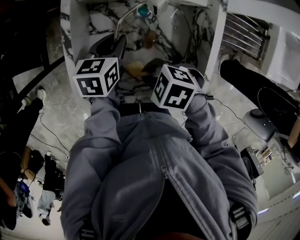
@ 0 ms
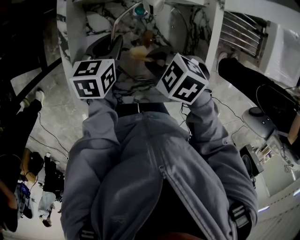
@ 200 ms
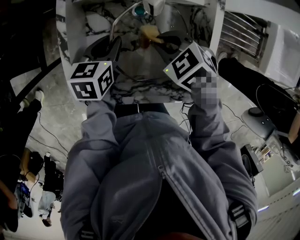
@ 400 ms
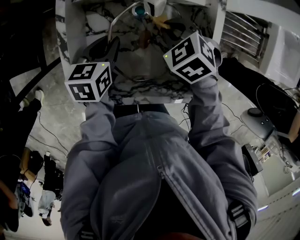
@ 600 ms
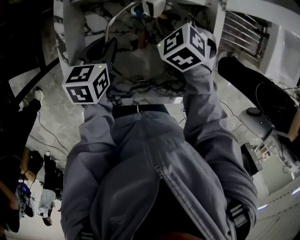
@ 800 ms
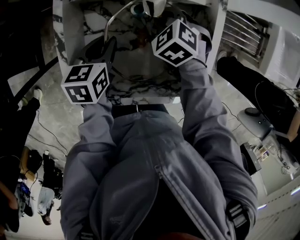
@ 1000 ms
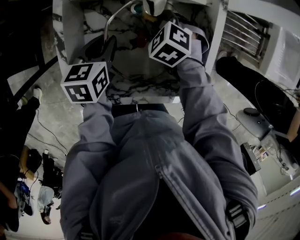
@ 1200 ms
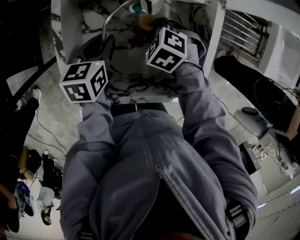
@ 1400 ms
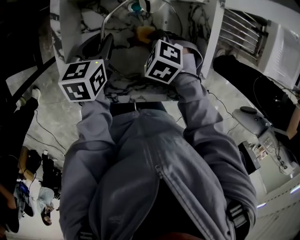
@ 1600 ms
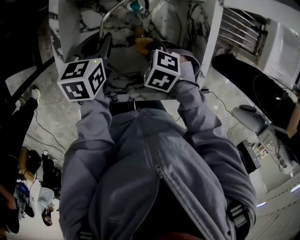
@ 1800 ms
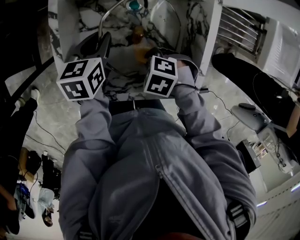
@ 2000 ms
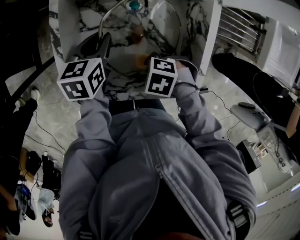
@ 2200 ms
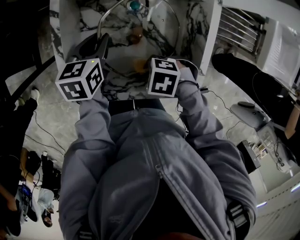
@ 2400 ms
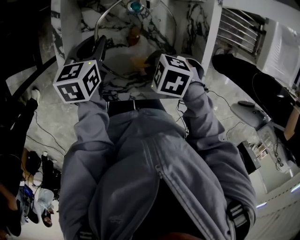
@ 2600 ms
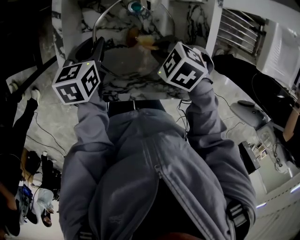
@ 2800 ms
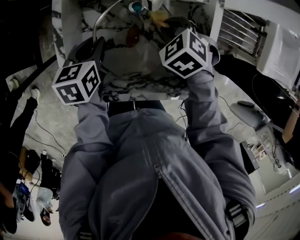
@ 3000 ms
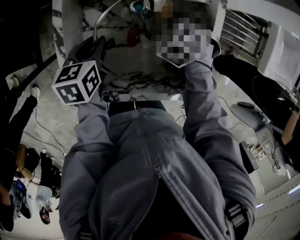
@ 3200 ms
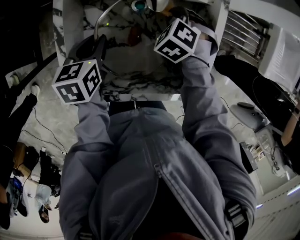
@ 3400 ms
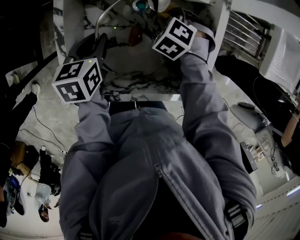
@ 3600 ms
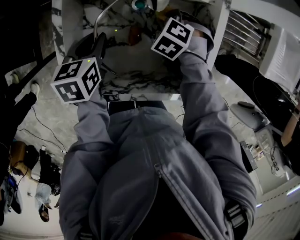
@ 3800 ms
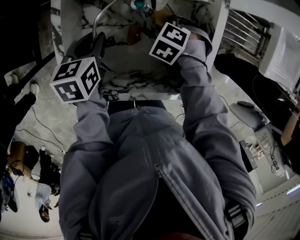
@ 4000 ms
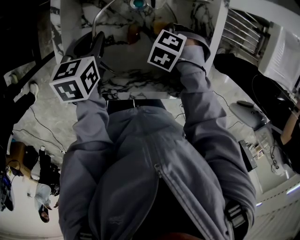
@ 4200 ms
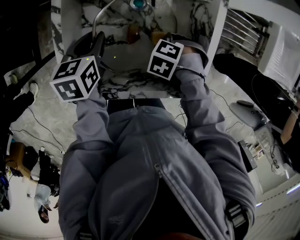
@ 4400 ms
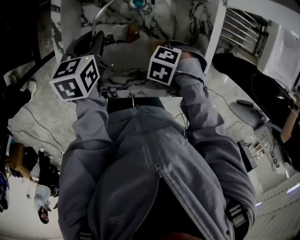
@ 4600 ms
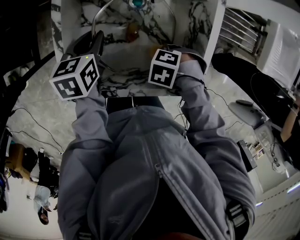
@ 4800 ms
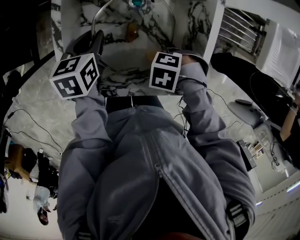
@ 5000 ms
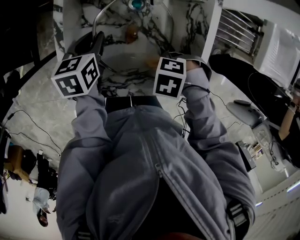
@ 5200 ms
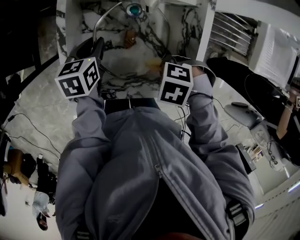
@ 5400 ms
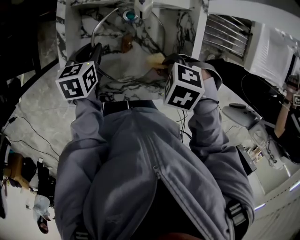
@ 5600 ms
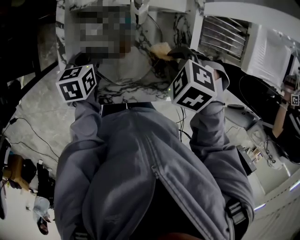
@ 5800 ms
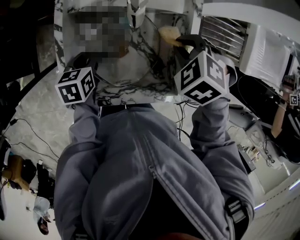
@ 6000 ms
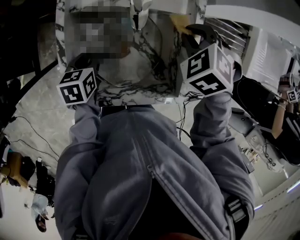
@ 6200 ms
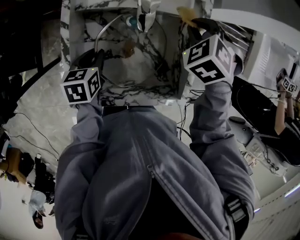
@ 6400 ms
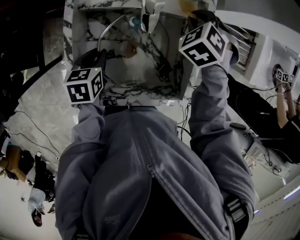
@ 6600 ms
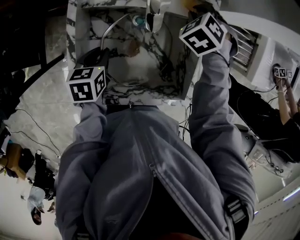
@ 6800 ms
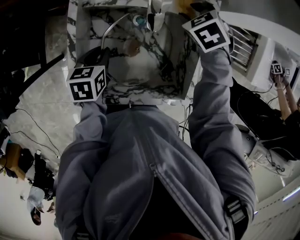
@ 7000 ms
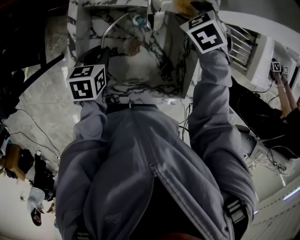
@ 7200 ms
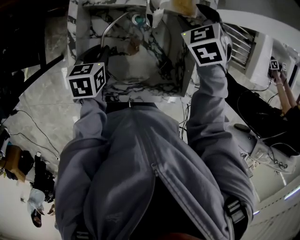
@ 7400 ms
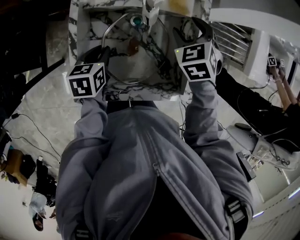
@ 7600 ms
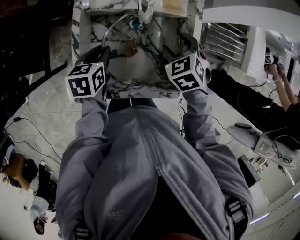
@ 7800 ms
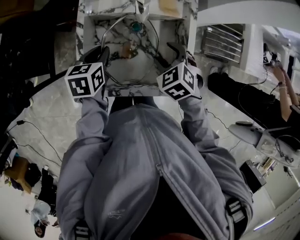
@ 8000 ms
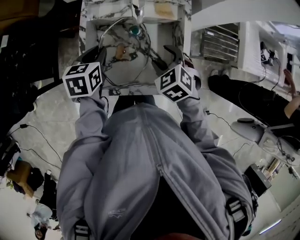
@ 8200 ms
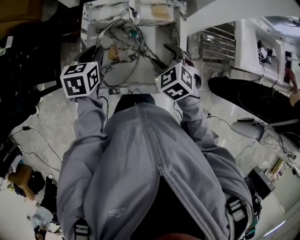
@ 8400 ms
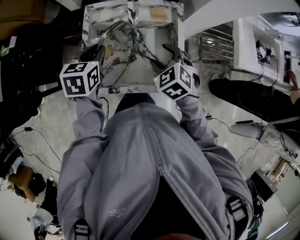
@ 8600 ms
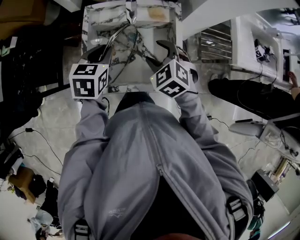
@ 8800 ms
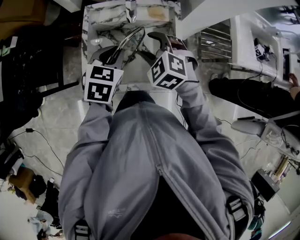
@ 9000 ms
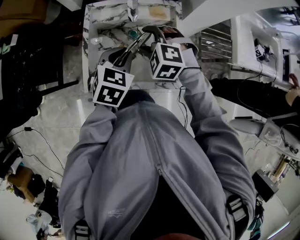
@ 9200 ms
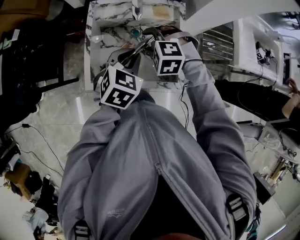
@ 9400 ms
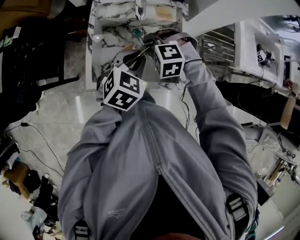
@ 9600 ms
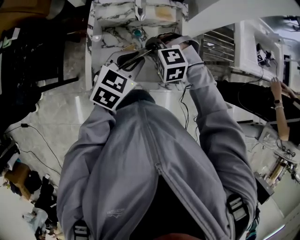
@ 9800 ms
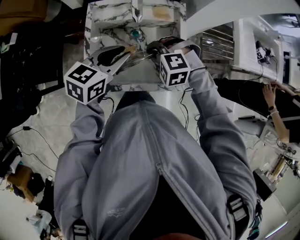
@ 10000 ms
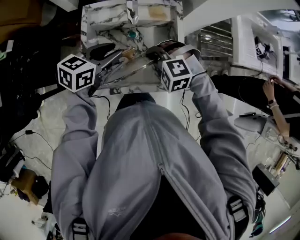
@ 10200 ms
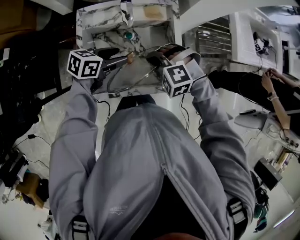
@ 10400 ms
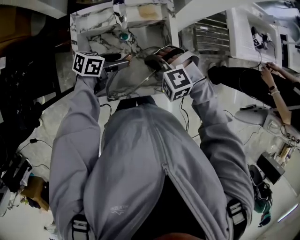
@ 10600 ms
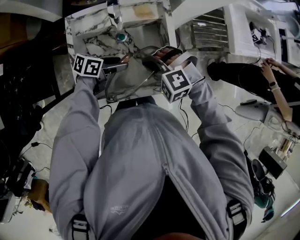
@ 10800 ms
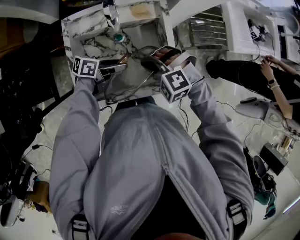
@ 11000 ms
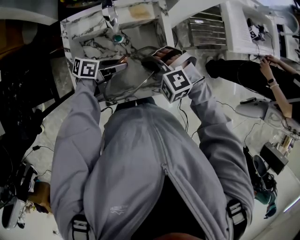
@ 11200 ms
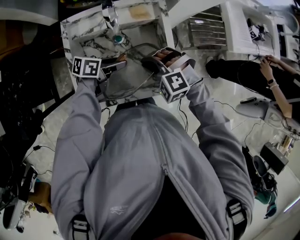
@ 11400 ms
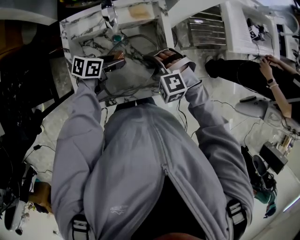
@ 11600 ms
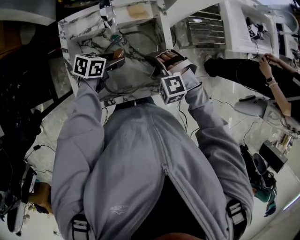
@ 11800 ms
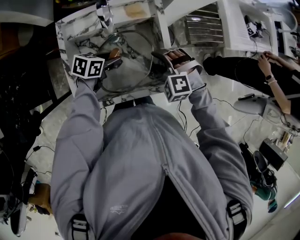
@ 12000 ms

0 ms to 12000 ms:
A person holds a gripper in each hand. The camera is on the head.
0 ms to 1600 ms: The right gripper rotates roughly 30 degrees.
3000 ms to 4400 ms: The right gripper moves some 15 cm, and changes its angle by about 30 degrees.
4400 ms to 6000 ms: The right gripper shifts about 20 cm upward, and swivels approximately 20 degrees.
6000 ms to 7600 ms: The right gripper rotates approximately 30 degrees, and opens.
7600 ms to 9000 ms: The right gripper shifts roughly 20 cm backward, upward and to the left, and rotates roughly 30 degrees, while the left gripper goes approximately 20 cm upward and to the right, and rotates approximately 30 degrees.
9000 ms to 10400 ms: The two grippers go some 10 cm downward. The right gripper turns by approximately 30 degrees, and closes its fingers. The left gripper swivels some 40 degrees, and opens its fingers.
10400 ms to 12000 ms: The right gripper ends up some 10 cm from where it was, and opens up. The left gripper is displaced downward by some 10 cm.

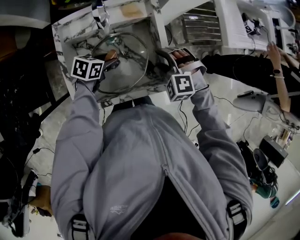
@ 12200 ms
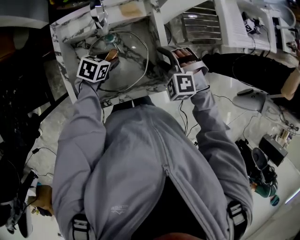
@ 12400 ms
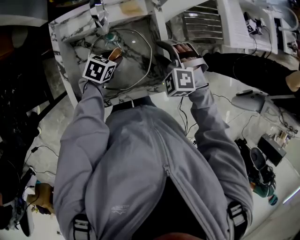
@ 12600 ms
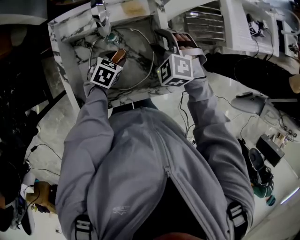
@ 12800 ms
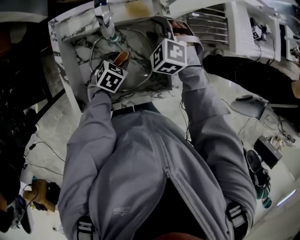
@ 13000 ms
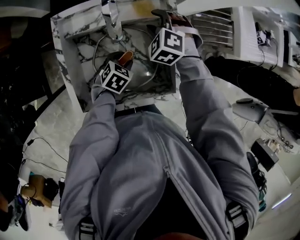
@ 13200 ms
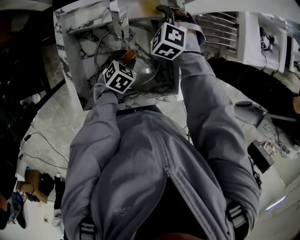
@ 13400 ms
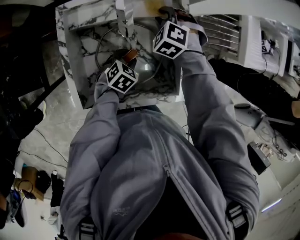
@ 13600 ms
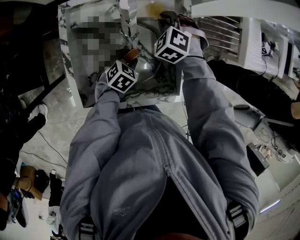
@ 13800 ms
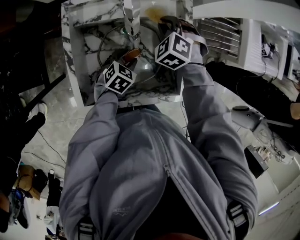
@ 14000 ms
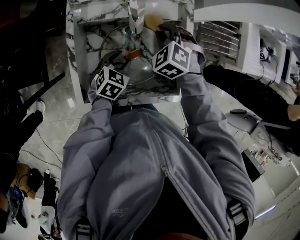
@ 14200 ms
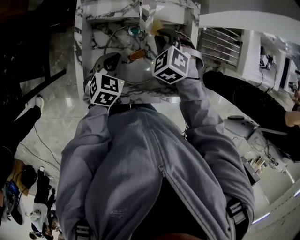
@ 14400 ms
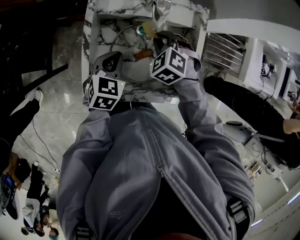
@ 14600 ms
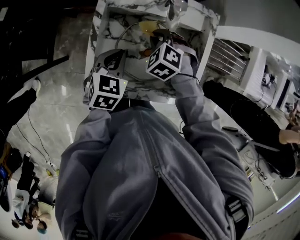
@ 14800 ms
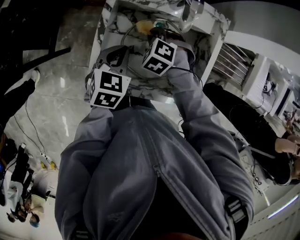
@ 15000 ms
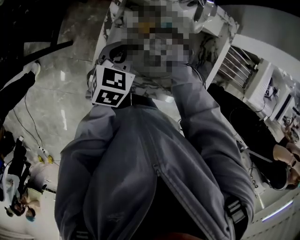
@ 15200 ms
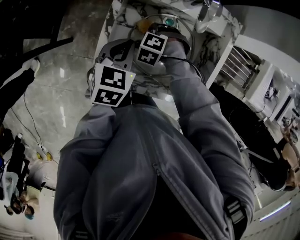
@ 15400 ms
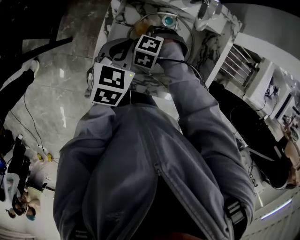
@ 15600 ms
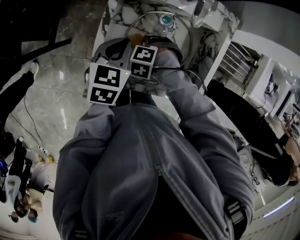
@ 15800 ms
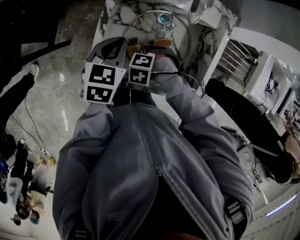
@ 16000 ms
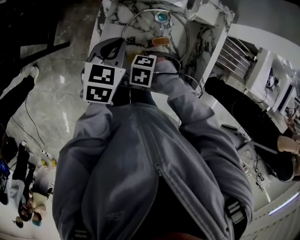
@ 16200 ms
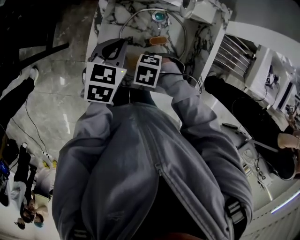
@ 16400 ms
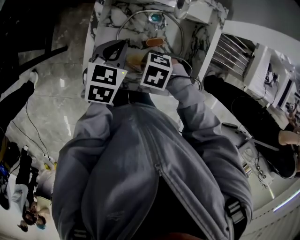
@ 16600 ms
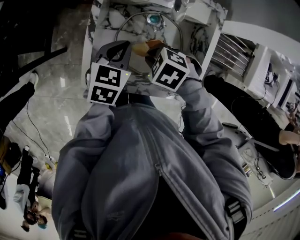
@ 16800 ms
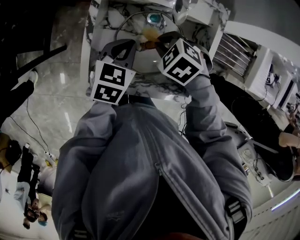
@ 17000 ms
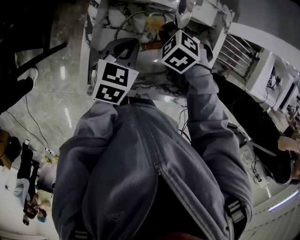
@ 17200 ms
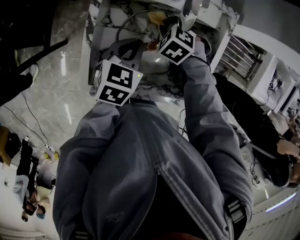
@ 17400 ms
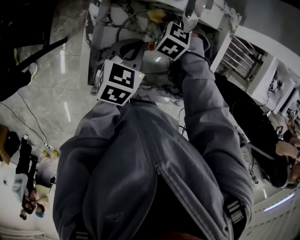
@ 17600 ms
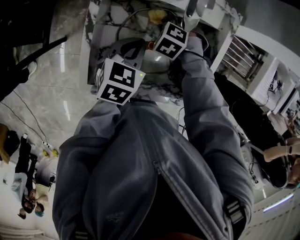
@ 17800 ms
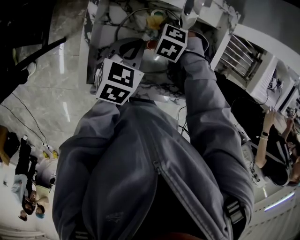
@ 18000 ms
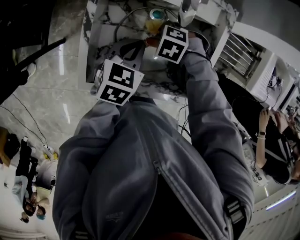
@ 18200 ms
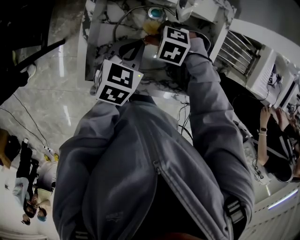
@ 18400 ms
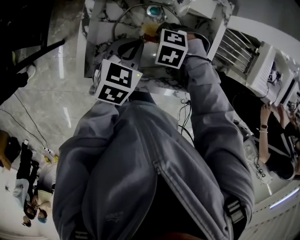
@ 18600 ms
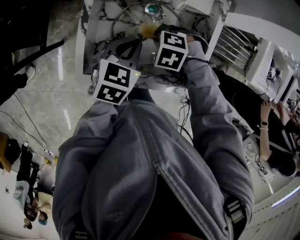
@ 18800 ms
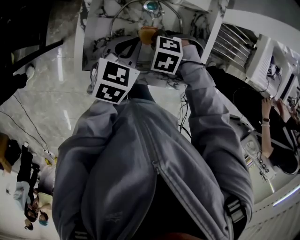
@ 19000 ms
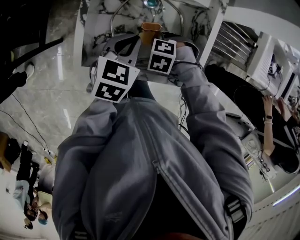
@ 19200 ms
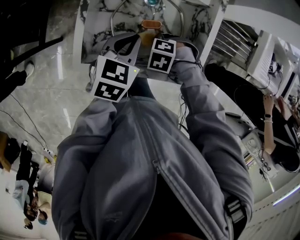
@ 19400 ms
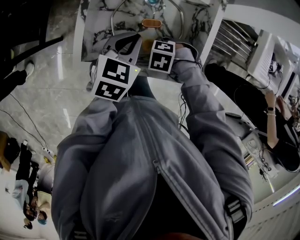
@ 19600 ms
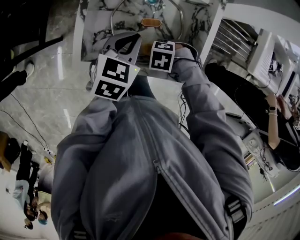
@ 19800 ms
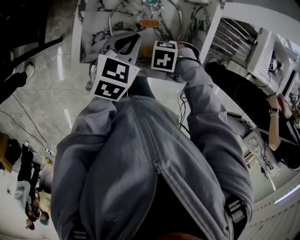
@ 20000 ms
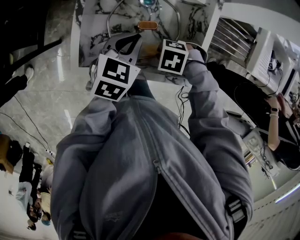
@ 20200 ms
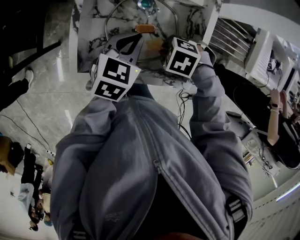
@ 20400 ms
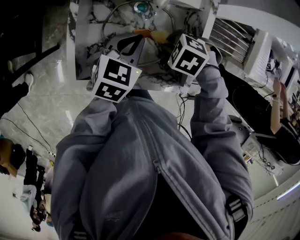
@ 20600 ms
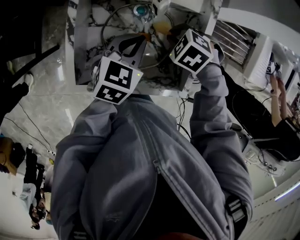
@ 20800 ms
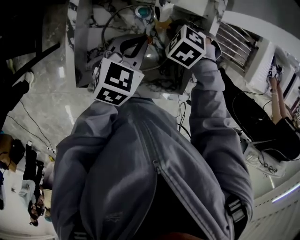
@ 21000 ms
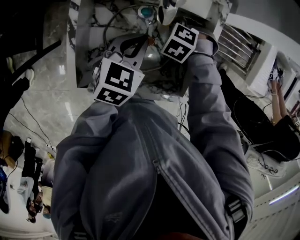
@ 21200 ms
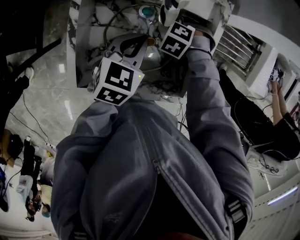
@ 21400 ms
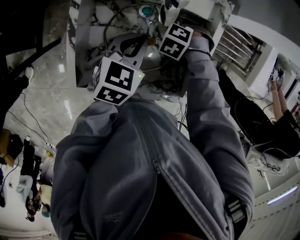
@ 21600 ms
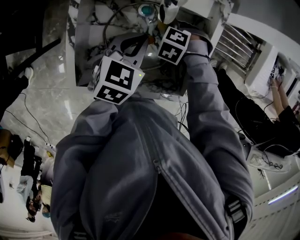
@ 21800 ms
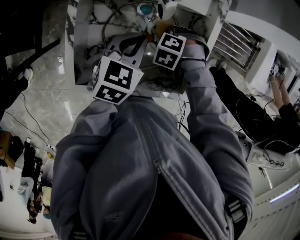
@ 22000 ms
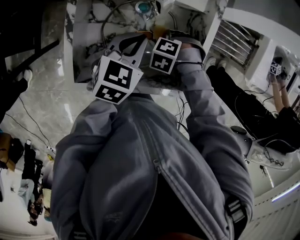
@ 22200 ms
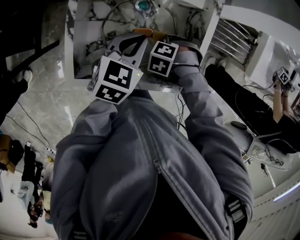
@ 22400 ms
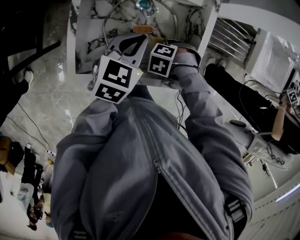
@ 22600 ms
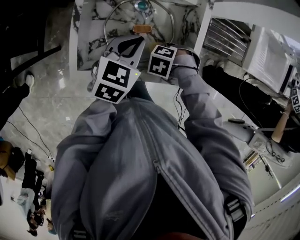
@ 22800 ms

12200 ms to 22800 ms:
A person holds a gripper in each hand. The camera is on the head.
12200 ms to 13800 ms: The left gripper shifts roughly 10 cm downward, and rotates roughly 30 degrees. The right gripper goes some 20 cm forward and to the left, and closes its fingers.
13800 ms to 15200 ms: The right gripper shifts by about 25 cm, and rotates roughly 30 degrees, while the left gripper ends up roughly 20 cm from where it was, rotates some 40 degrees, and closes.
15200 ms to 16800 ms: The right gripper shifts by some 15 cm, and turns by approximately 30 degrees.
16800 ms to 18200 ms: The right gripper shifts about 10 cm downward; the left gripper changes place by roughly 5 cm.
18200 ms to 19800 ms: The right gripper ends up roughly 20 cm from where it was, while the left gripper moves about 10 cm.
19800 ms to 21200 ms: The left gripper changes place by approximately 10 cm. The right gripper reaches some 10 cm upward, then returns, and turns by about 30 degrees.
21200 ms to 22800 ms: The right gripper moves roughly 20 cm; the left gripper moves some 10 cm.

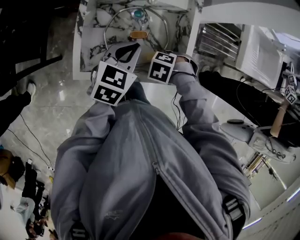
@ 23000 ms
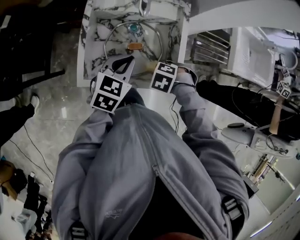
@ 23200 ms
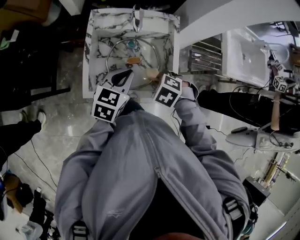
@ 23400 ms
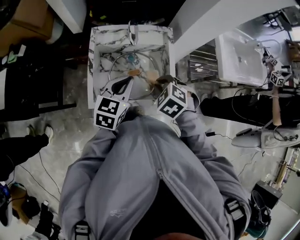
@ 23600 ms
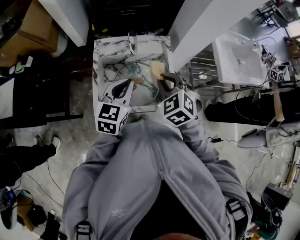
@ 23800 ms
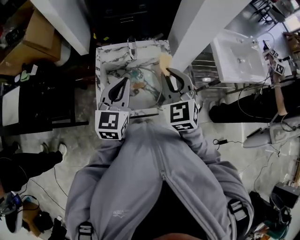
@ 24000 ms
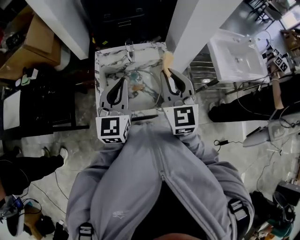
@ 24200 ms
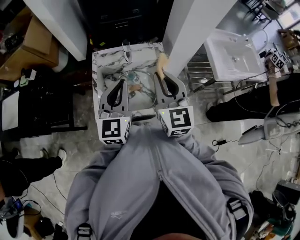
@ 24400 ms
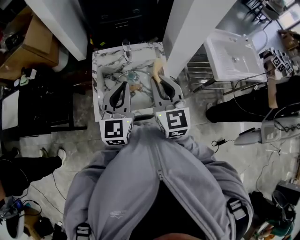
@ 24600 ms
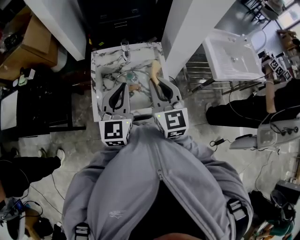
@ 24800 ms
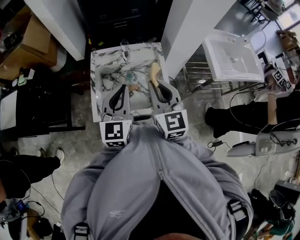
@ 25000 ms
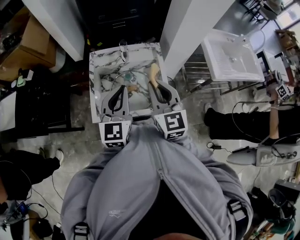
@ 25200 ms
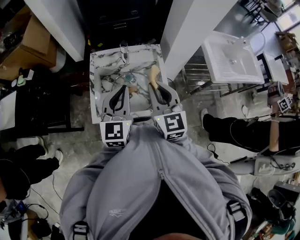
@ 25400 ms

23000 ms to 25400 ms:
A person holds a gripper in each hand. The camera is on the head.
23000 ms to 24200 ms: The right gripper heads upward, covering about 40 cm, and angles its fingers upward, by about 70 degrees, while the left gripper goes some 25 cm upward, and points its fingers roughly 30 degrees further upward.
24200 ms to 25400 ms: The right gripper shifts by approximately 5 cm.
